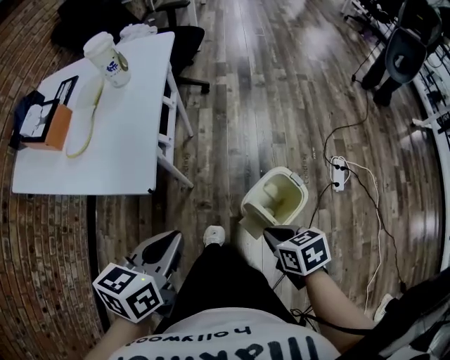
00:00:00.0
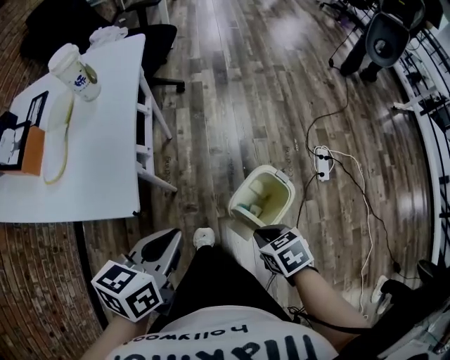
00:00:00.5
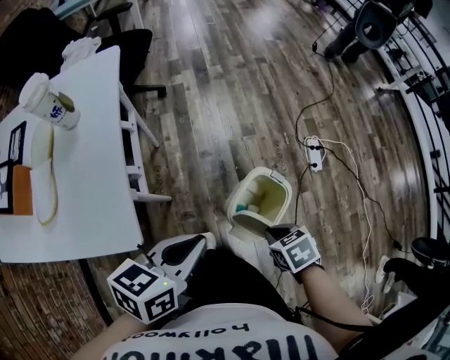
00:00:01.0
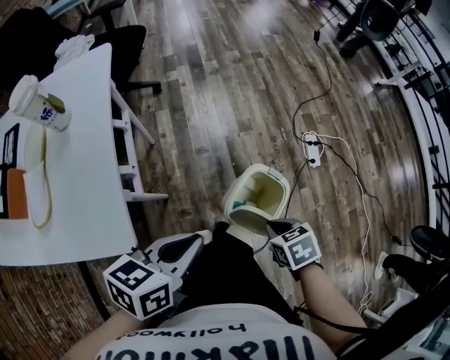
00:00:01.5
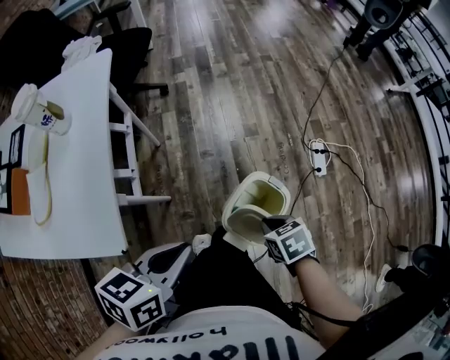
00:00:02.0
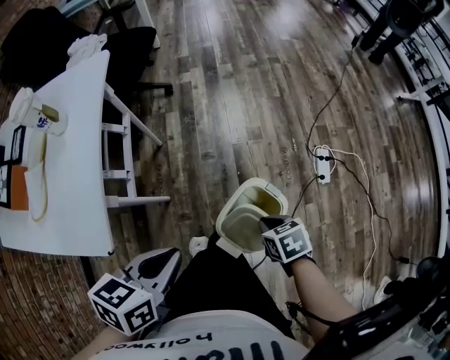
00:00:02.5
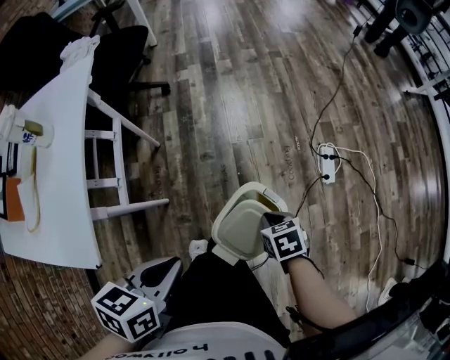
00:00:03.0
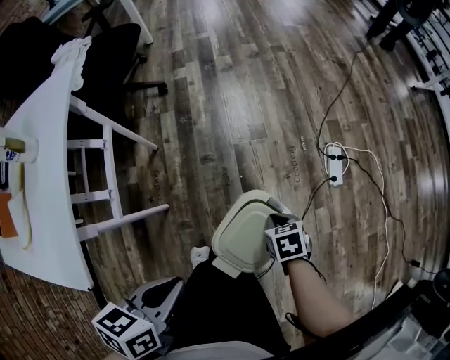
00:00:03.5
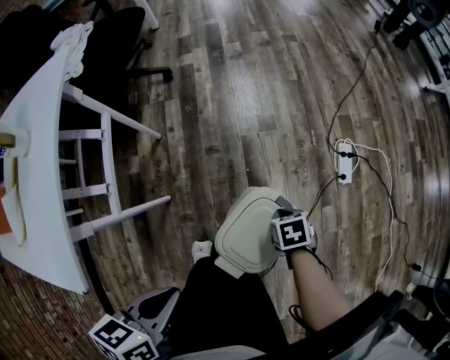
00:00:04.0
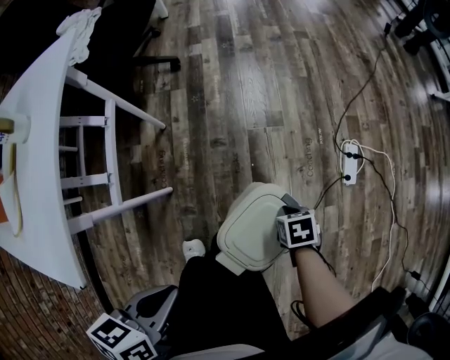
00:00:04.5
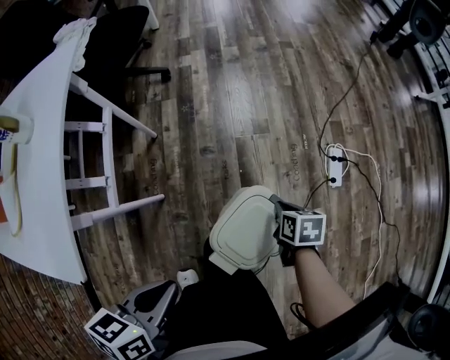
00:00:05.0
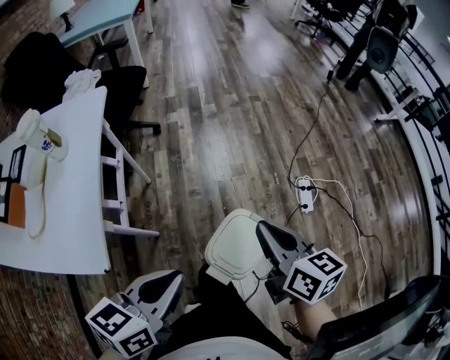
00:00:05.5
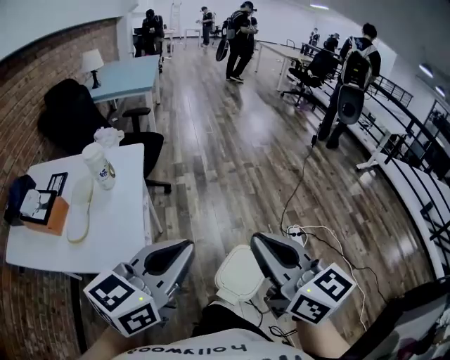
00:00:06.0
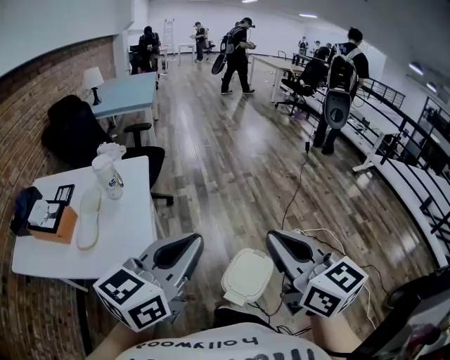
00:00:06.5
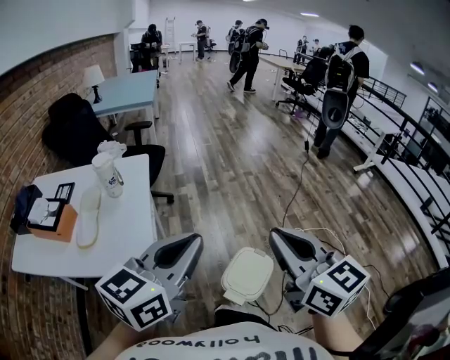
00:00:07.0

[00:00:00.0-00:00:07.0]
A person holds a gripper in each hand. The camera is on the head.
00:00:00.0 to 00:00:02.0: The left gripper ends up roughly 15 cm from where it was, and swivels approximately 20 degrees. Meanwhile the right gripper shifts by roughly 10 cm.
00:00:02.0 to 00:00:03.5: The left gripper heads downward and to the right, covering approximately 10 cm; the right gripper moves downward, forward and to the right, about 20 cm.
00:00:03.5 to 00:00:05.0: There are only small adjustments of the grippers.
00:00:05.0 to 00:00:07.0: The left gripper heads upward, covering approximately 35 cm, and tips its fingers upward by approximately 40 degrees. The right gripper goes approximately 60 cm upward and backward, and tips its fingers upward by some 60 degrees.

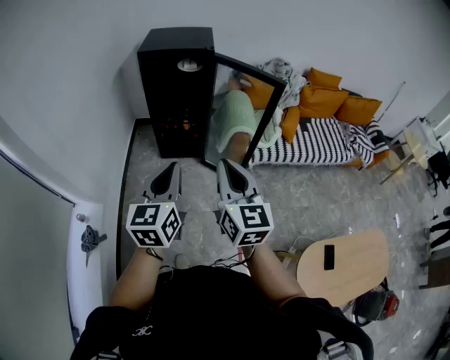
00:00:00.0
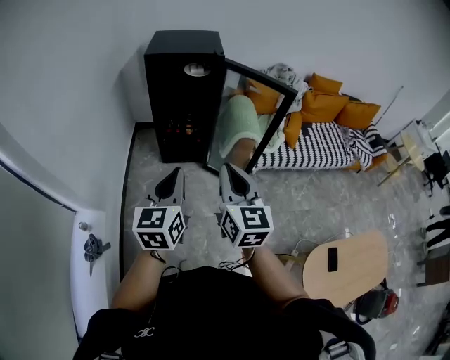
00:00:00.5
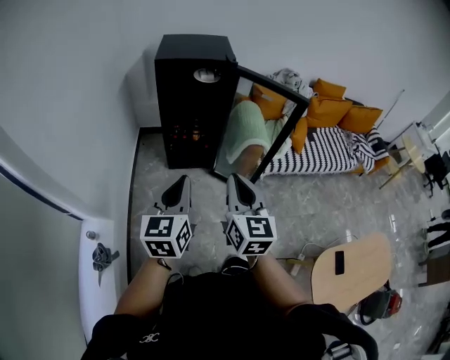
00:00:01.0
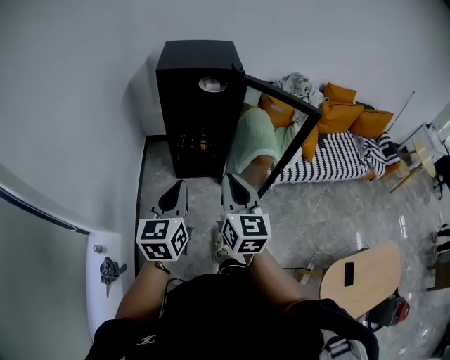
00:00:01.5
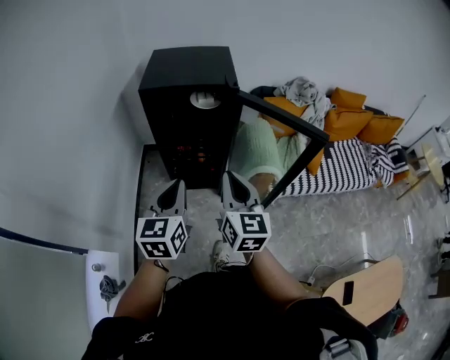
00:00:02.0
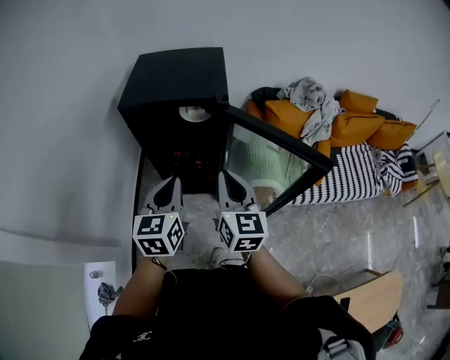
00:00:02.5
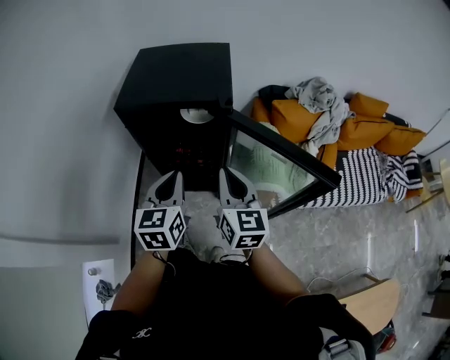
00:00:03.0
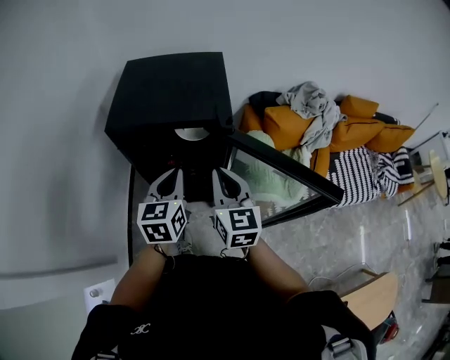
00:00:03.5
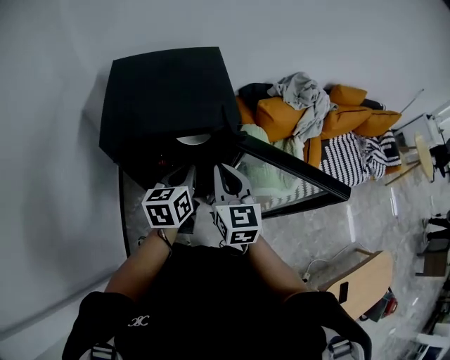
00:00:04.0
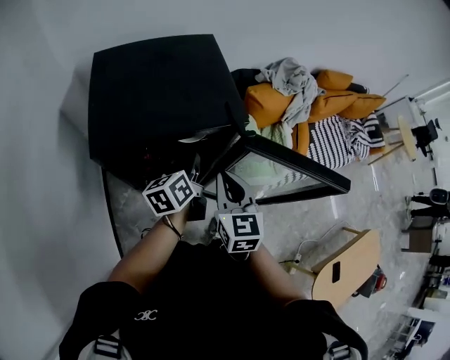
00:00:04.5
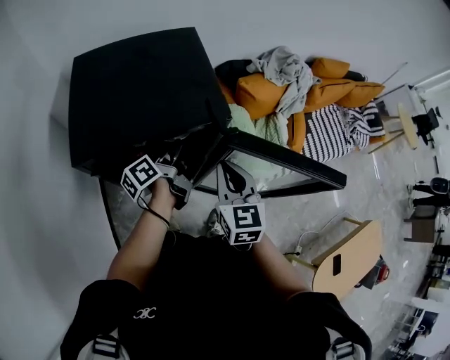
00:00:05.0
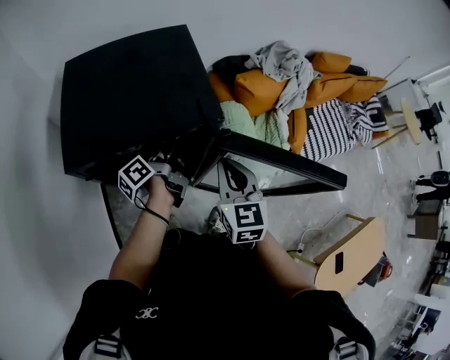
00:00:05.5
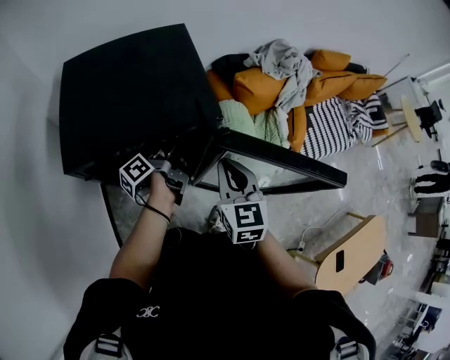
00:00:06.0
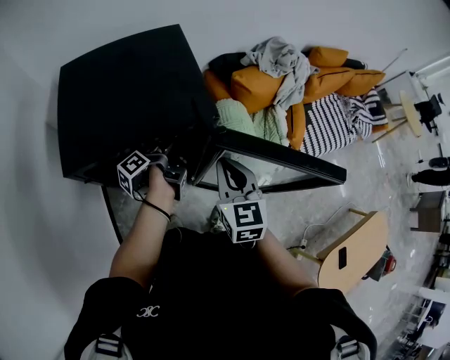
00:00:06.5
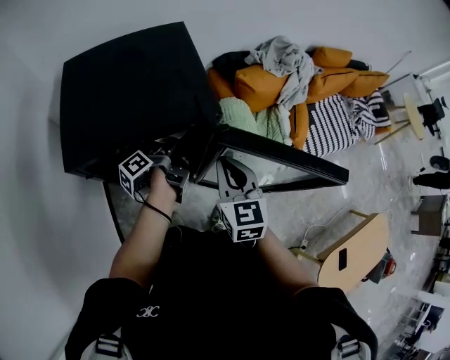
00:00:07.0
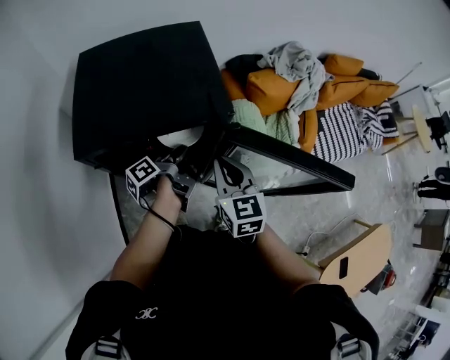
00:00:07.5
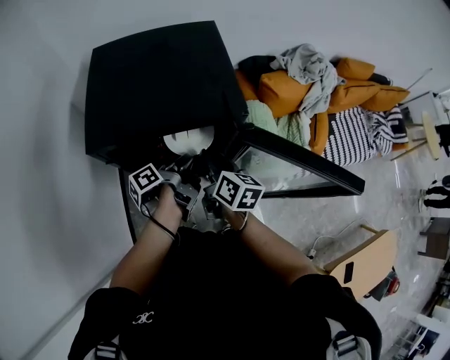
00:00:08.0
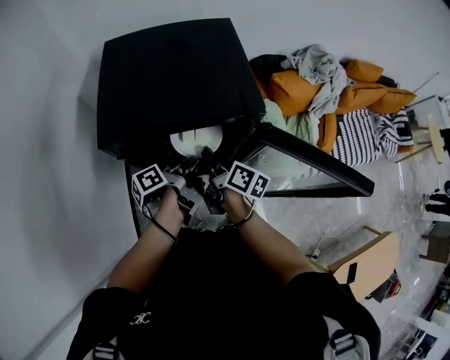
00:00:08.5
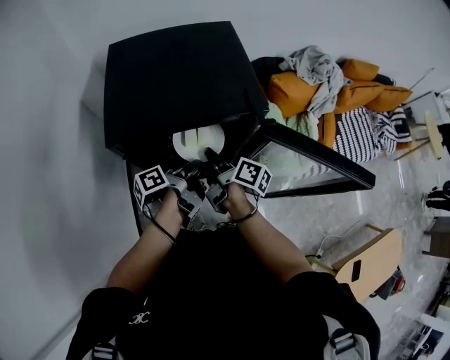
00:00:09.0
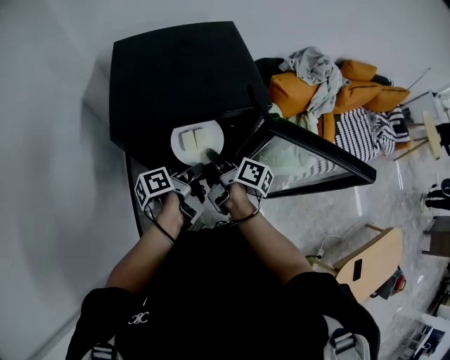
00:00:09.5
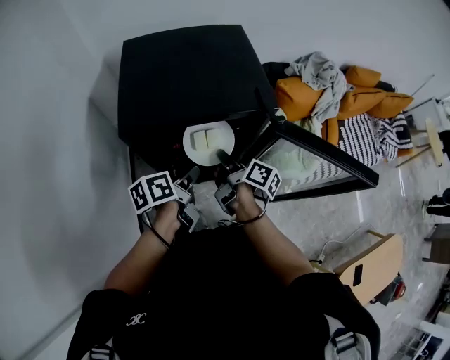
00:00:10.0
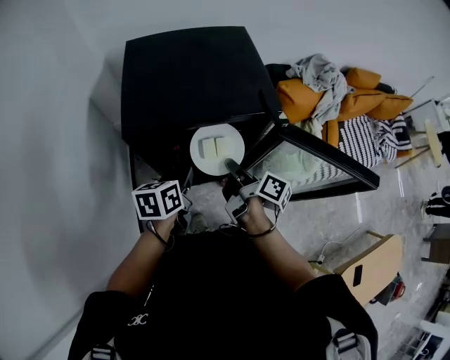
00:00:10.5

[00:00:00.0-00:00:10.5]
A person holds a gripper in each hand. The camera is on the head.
00:00:00.0 to 00:00:02.0: The two grippers go roughly 25 cm forward.
00:00:02.0 to 00:00:04.0: Both grippers travel together forward, approximately 30 cm. The left gripper rotates roughly 20 degrees.
00:00:04.0 to 00:00:06.5: The left gripper moves downward and forward, roughly 15 cm, and twists some 70 degrees counterclockwise, seen from behind. Meanwhile the right gripper heads to the right, covering about 5 cm.
00:00:06.5 to 00:00:08.5: The right gripper moves to the left and downward, some 15 cm, rolls clockwise, seen from behind, by some 60 degrees, and opens. Meanwhile the left gripper travels backward by some 10 cm.
00:00:08.5 to 00:00:10.5: The left gripper travels to the left by approximately 5 cm, and rolls clockwise, seen from behind, by some 60 degrees. Meanwhile the right gripper ends up about 5 cm from where it was, and closes.

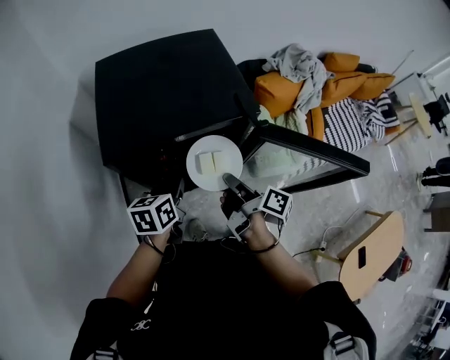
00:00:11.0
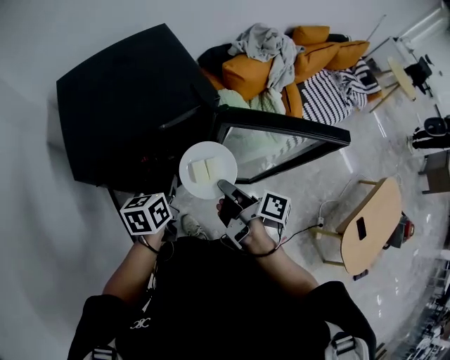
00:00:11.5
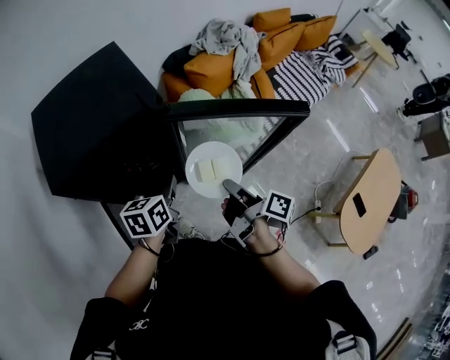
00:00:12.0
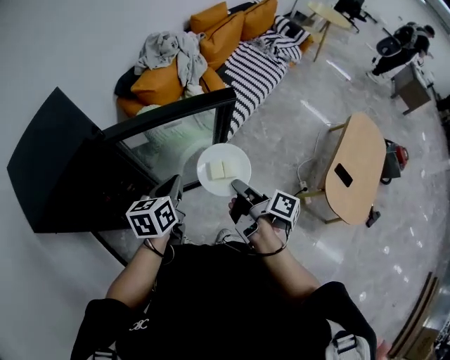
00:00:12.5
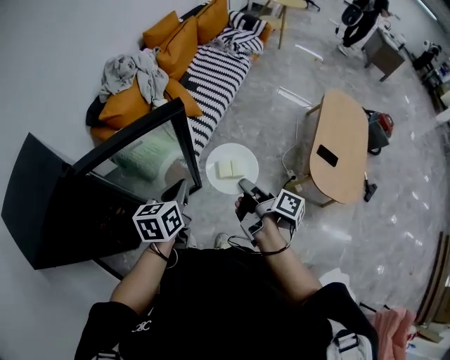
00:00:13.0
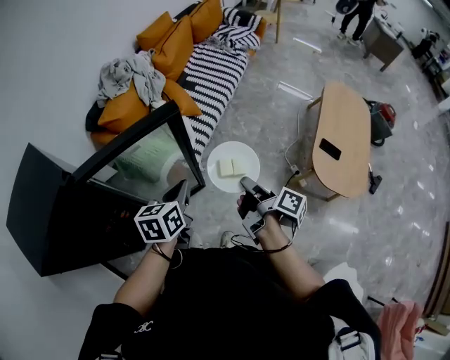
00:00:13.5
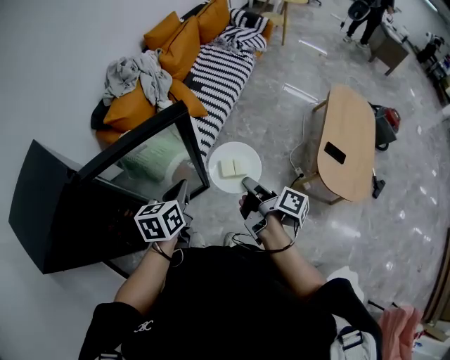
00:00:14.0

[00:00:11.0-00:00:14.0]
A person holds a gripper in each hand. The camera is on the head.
00:00:11.0 to 00:00:12.5: The left gripper moves approximately 35 cm, and changes its angle by about 30 degrees, while the right gripper moves approximately 35 cm, and rotates some 40 degrees.
00:00:12.5 to 00:00:14.0: The two grippers go about 10 cm to the right.

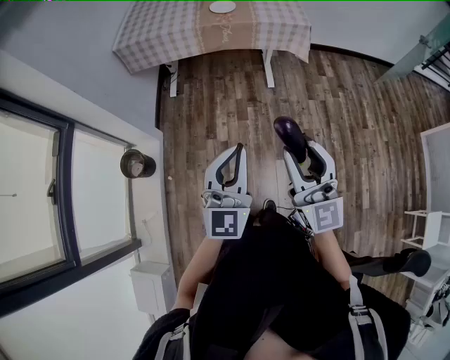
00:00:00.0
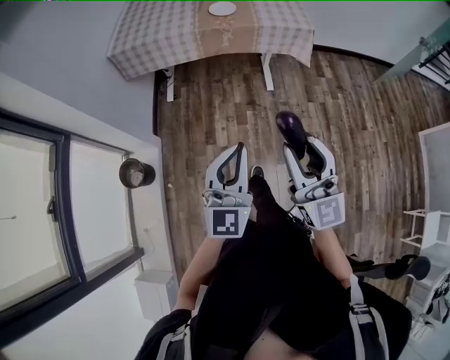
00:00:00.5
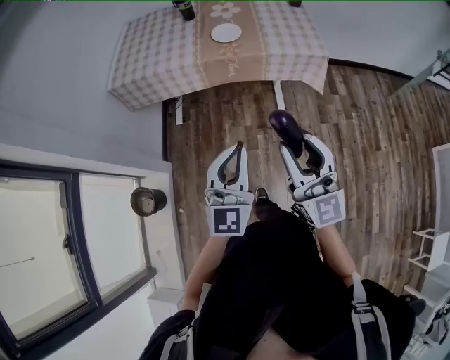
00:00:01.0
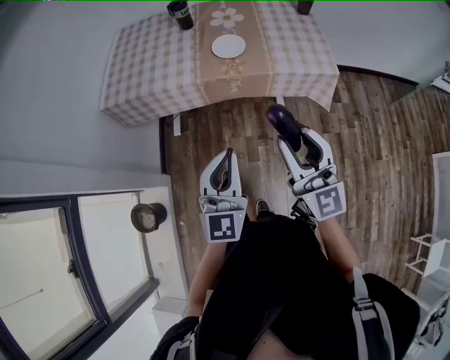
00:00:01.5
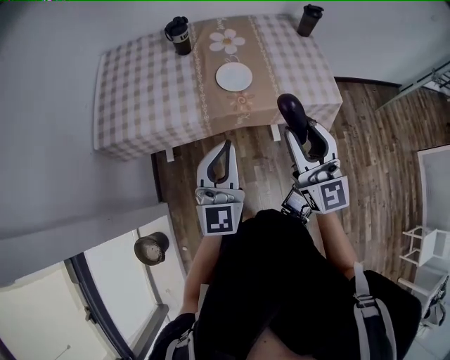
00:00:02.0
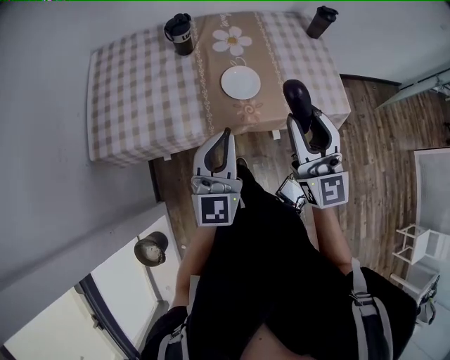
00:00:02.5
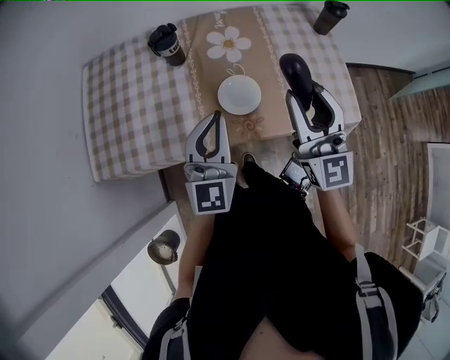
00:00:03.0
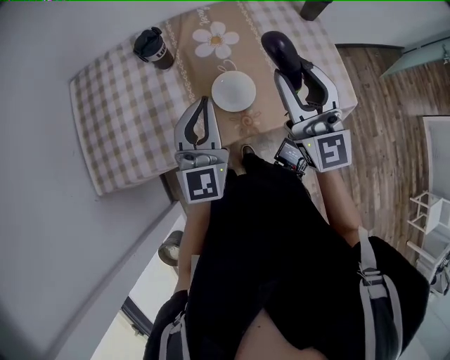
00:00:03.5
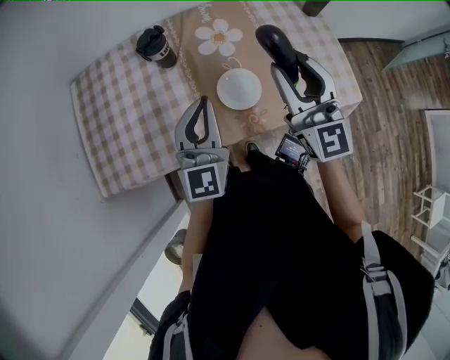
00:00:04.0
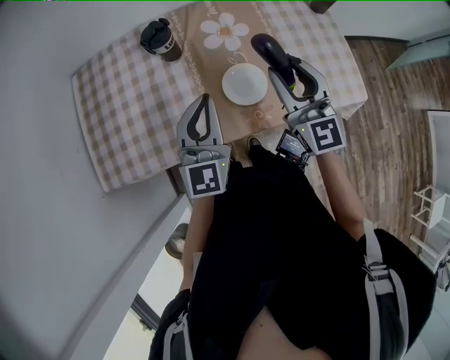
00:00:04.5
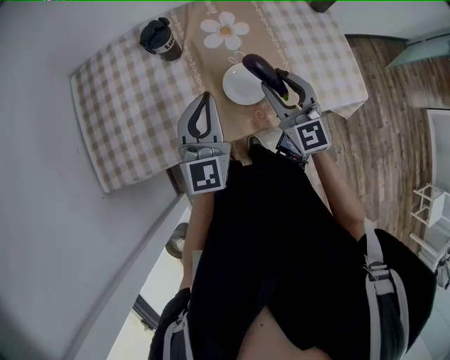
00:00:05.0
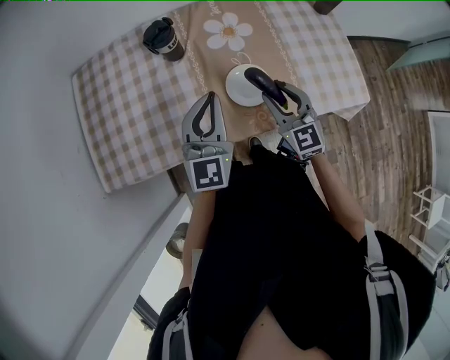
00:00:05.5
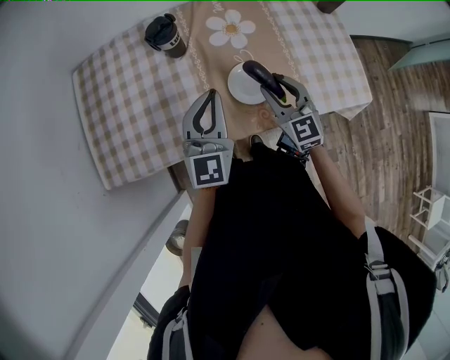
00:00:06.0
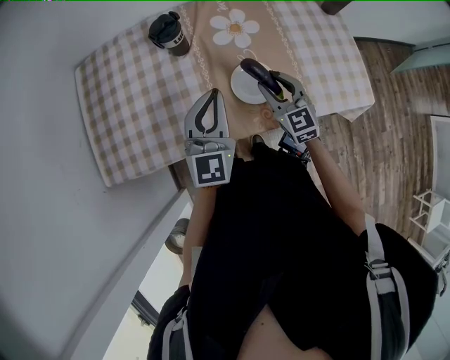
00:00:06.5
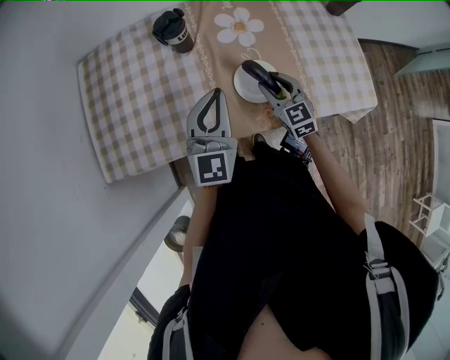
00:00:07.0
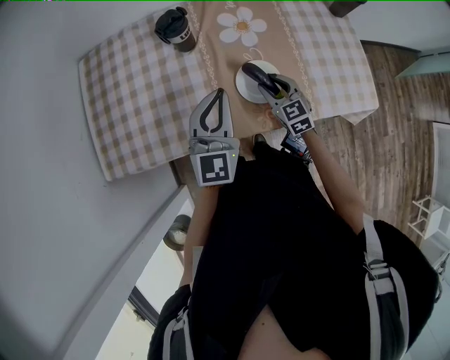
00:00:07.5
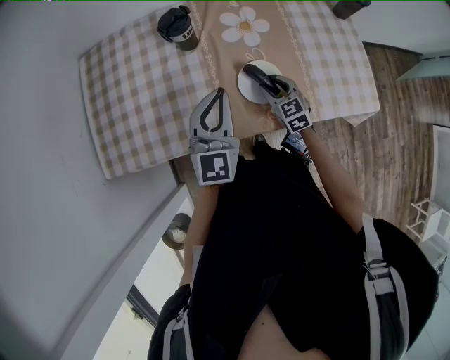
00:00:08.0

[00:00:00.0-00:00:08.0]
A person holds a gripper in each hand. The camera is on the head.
00:00:00.0 to 00:00:02.0: Both grippers are carried forward, some 60 cm.
00:00:02.0 to 00:00:04.0: The two grippers go approximately 30 cm forward.
00:00:04.0 to 00:00:06.0: The left gripper shifts by roughly 5 cm. Meanwhile the right gripper shifts roughly 20 cm downward, and rotates approximately 20 degrees.
00:00:06.0 to 00:00:08.0: The right gripper travels downward by roughly 10 cm.
